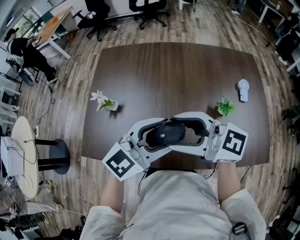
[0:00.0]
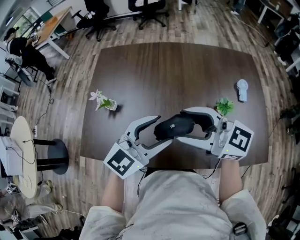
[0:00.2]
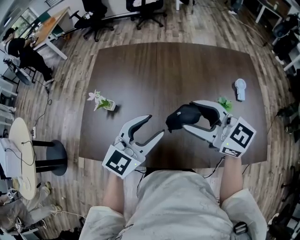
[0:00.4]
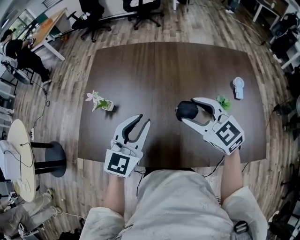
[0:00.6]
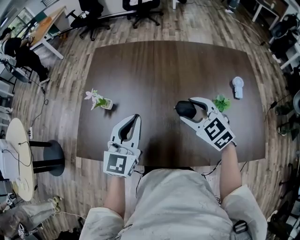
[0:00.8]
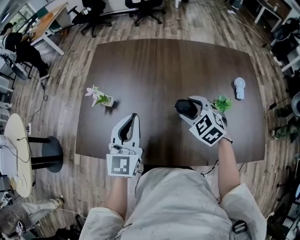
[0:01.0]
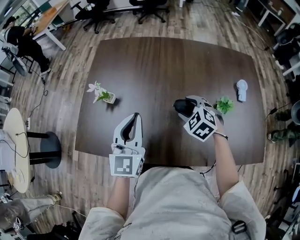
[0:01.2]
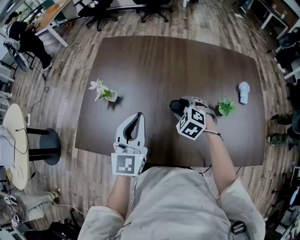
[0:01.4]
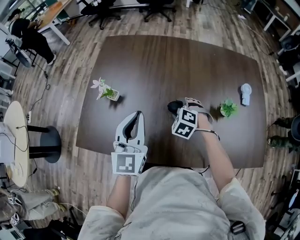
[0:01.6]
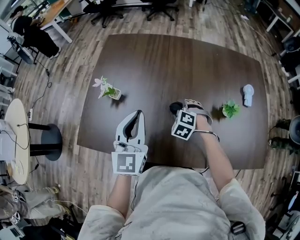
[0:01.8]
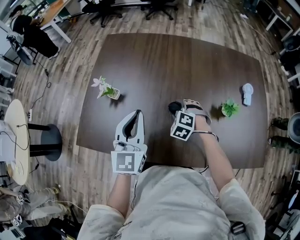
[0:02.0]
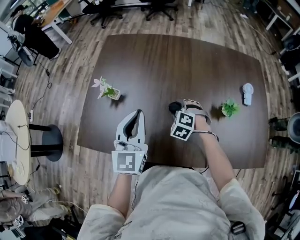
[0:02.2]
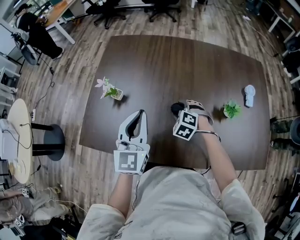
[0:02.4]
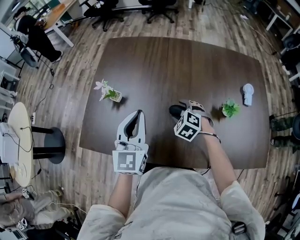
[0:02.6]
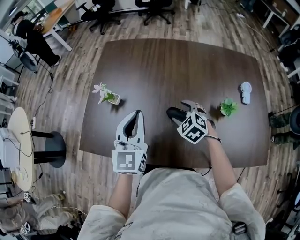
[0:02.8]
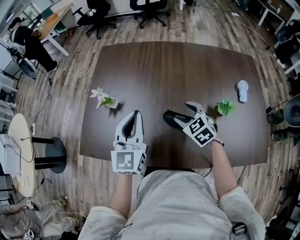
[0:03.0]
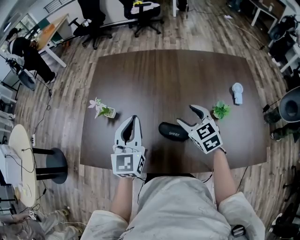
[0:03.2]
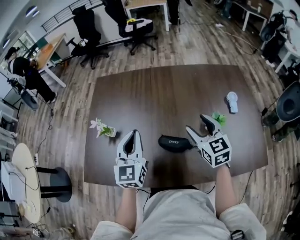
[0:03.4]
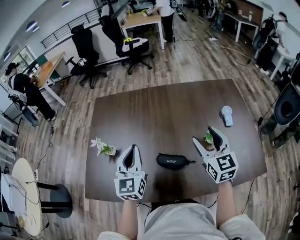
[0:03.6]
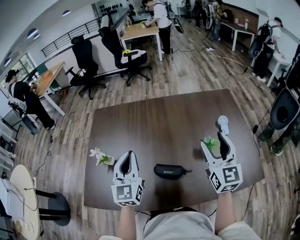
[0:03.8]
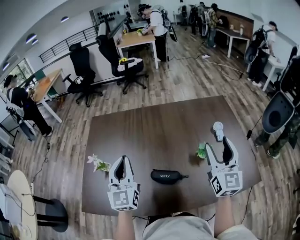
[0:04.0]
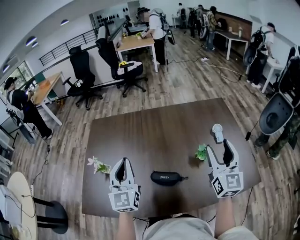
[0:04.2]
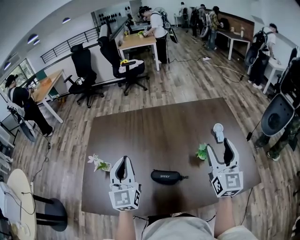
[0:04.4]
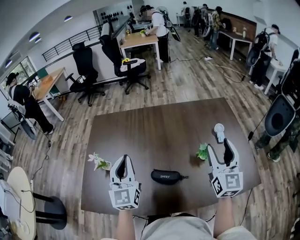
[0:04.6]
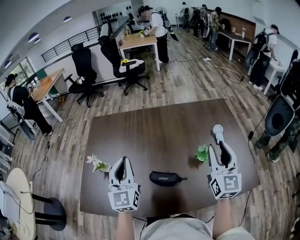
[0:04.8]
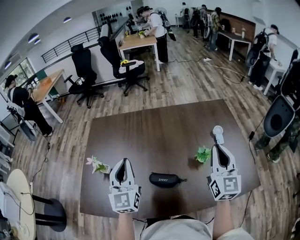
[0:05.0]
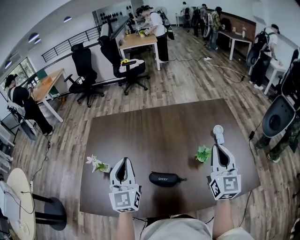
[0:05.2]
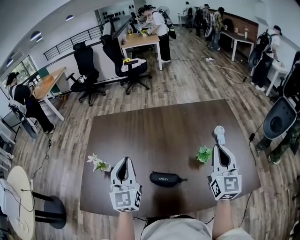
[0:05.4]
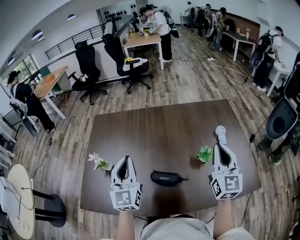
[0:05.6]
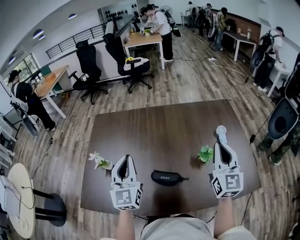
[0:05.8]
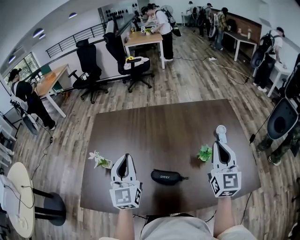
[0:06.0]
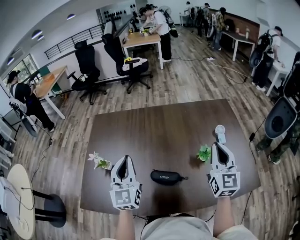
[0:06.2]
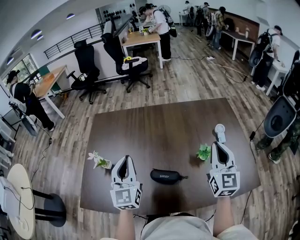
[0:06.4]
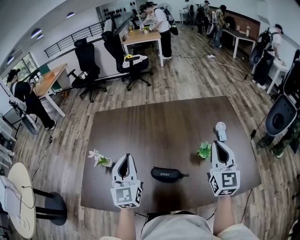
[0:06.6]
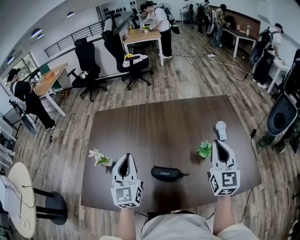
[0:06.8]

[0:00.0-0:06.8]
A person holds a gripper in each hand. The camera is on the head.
0:00.0 to 0:01.4: The right gripper moves downward, approximately 25 cm, and angles its fingers downward, by approximately 60 degrees; the left gripper shifts by approximately 15 cm, changes its angle by approximately 50 degrees, and closes its fingers.
0:02.8 to 0:04.0: The right gripper moves upward and to the right, approximately 35 cm, and tilts its fingers some 60 degrees upward. Meanwhile the left gripper shifts some 5 cm upward.
0:04.0 to 0:05.4: The right gripper closes its fingers.
0:05.4 to 0:06.8: The grippers make only small movements.

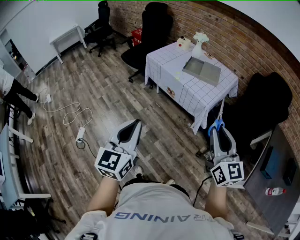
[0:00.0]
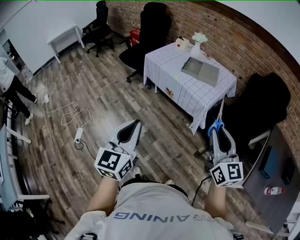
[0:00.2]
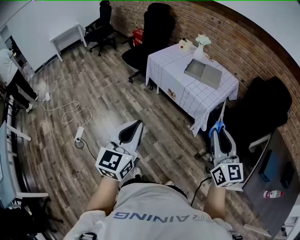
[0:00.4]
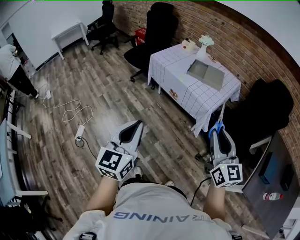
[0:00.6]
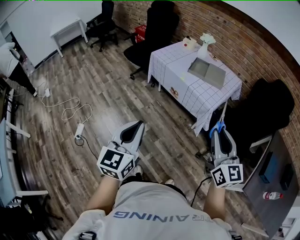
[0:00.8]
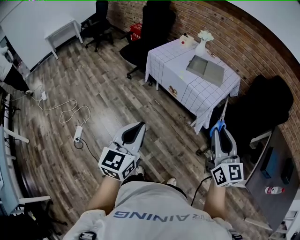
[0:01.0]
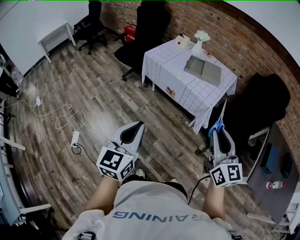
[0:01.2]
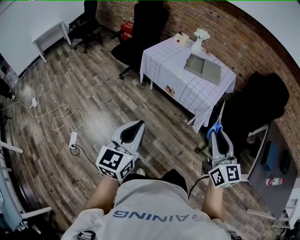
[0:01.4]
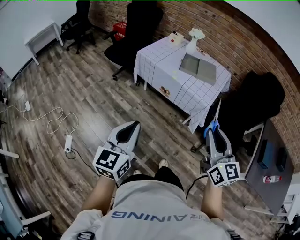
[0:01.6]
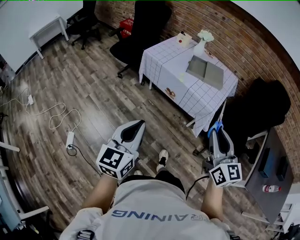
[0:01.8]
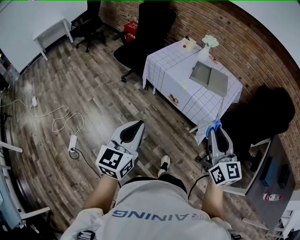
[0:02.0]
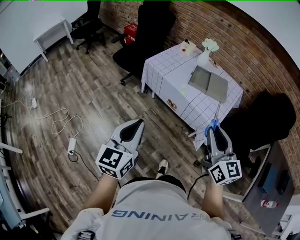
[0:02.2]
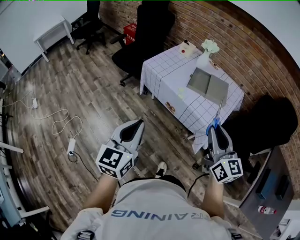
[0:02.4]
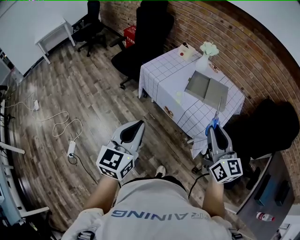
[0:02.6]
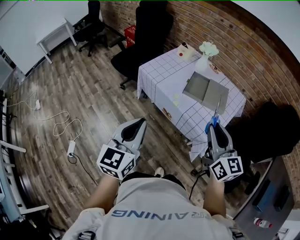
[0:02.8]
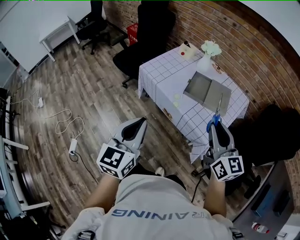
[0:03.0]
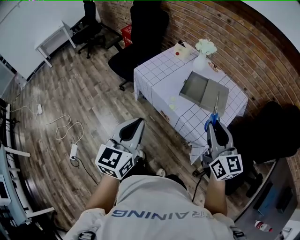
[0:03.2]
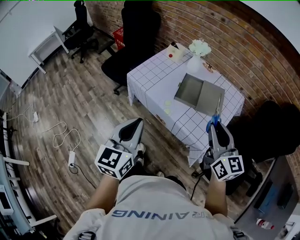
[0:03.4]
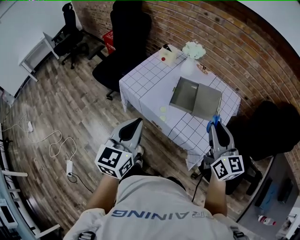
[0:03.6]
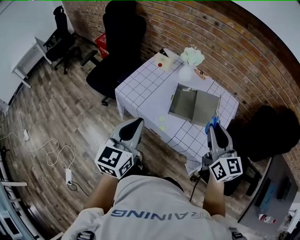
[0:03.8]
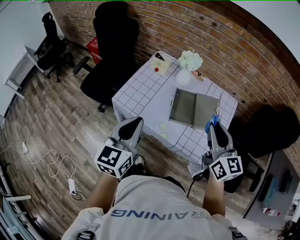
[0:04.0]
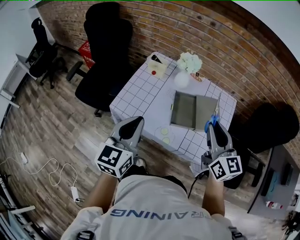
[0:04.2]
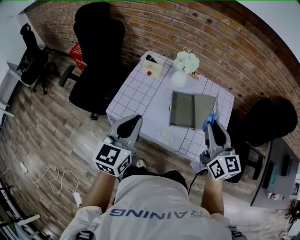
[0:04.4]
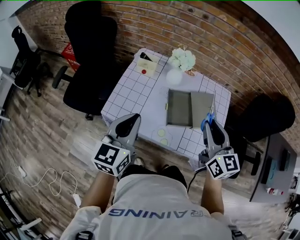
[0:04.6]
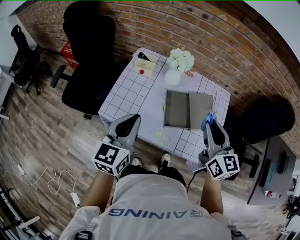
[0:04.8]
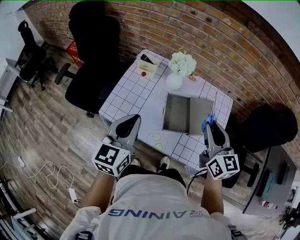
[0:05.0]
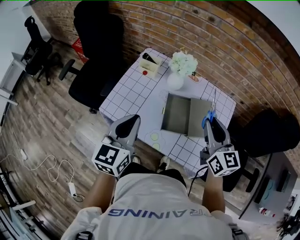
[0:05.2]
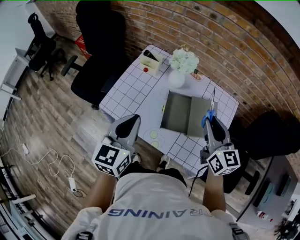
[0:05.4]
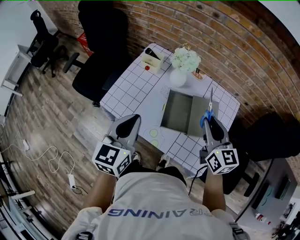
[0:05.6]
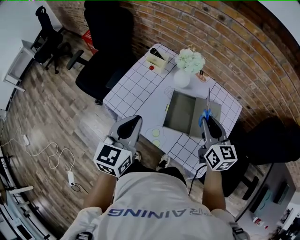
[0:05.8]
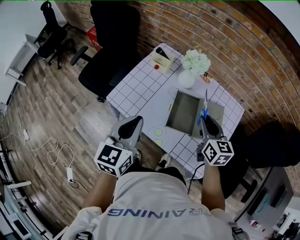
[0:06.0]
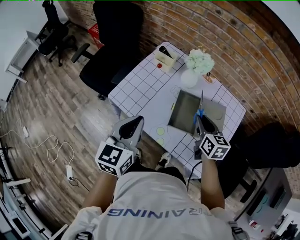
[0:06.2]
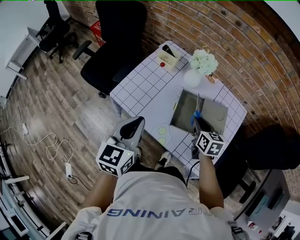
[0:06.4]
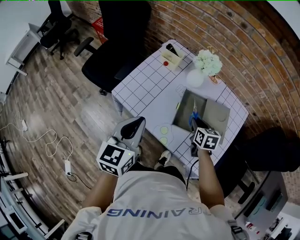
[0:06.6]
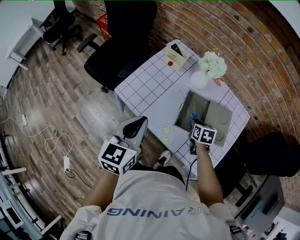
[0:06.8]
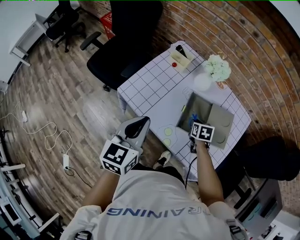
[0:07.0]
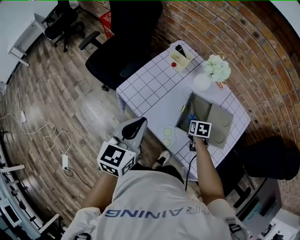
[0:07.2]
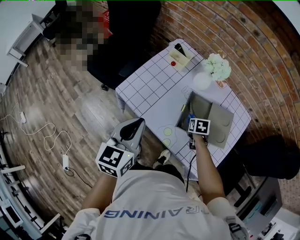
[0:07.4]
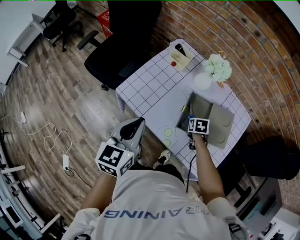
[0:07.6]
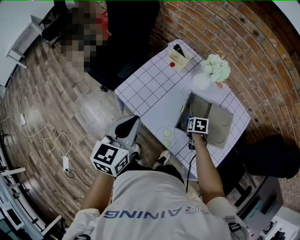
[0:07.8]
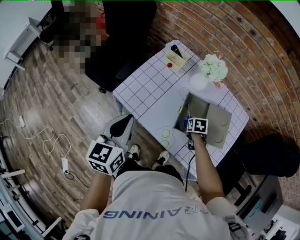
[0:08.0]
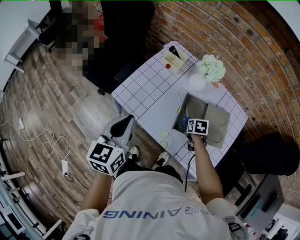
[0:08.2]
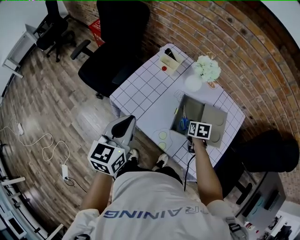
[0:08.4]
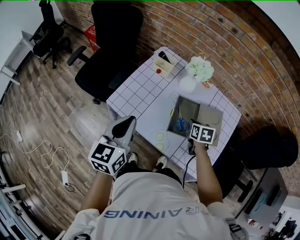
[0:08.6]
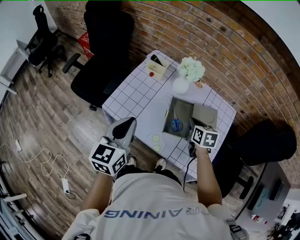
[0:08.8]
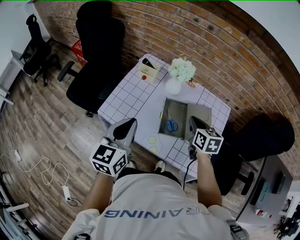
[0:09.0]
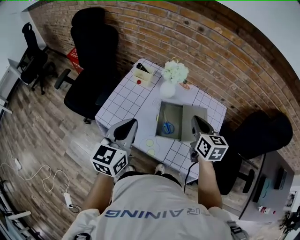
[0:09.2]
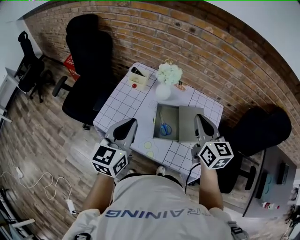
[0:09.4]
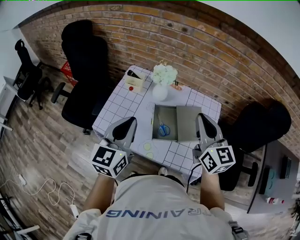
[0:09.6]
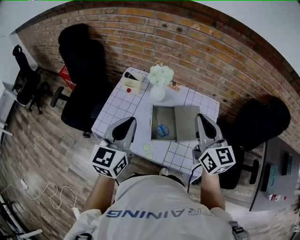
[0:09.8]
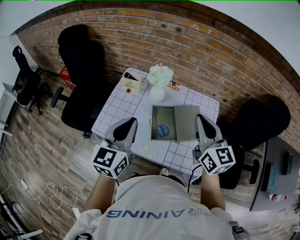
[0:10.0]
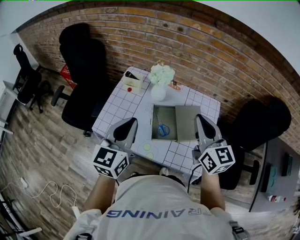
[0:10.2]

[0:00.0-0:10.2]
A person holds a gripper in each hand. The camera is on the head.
0:00.0 to 0:01.4: The left gripper is displaced to the left and forward by roughly 10 cm. Meanwhile the right gripper travels to the left by roughly 10 cm.
0:01.4 to 0:03.0: Both grippers move forward, approximately 30 cm.
0:03.0 to 0:04.4: Both grippers travel together forward, roughly 30 cm. The left gripper swivels about 30 degrees. Meanwhile the right gripper rotates about 20 degrees.
0:04.4 to 0:05.8: The left gripper shifts about 5 cm to the right. The right gripper moves forward, downward and to the right, roughly 15 cm.
0:05.8 to 0:07.2: The right gripper shifts some 25 cm downward, and points its fingers roughly 50 degrees further downward. Meanwhile the left gripper moves to the left, about 5 cm.
0:07.2 to 0:08.8: The right gripper goes roughly 15 cm upward, changes its angle by roughly 20 degrees, and closes its fingers.
0:08.8 to 0:10.2: The right gripper shifts approximately 25 cm upward, and angles its fingers upward, by roughly 40 degrees. The left gripper moves to the right and upward, approximately 10 cm.

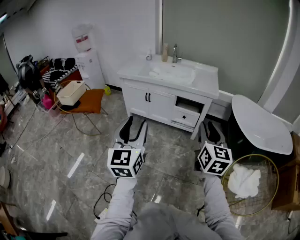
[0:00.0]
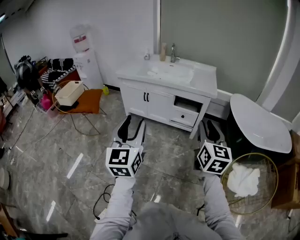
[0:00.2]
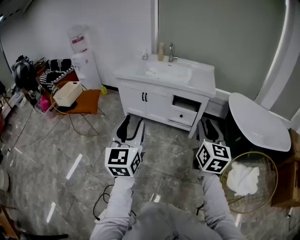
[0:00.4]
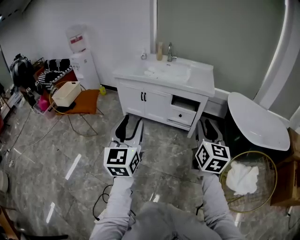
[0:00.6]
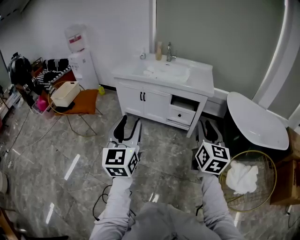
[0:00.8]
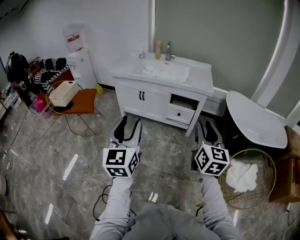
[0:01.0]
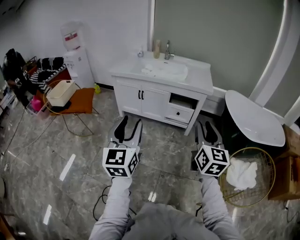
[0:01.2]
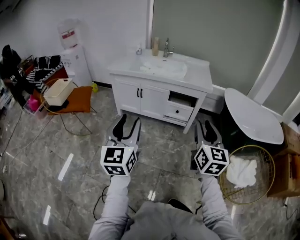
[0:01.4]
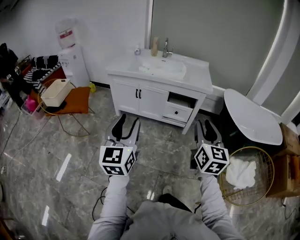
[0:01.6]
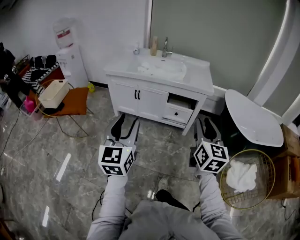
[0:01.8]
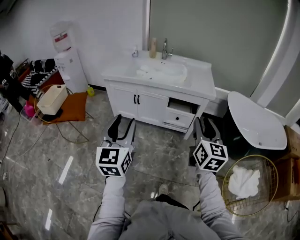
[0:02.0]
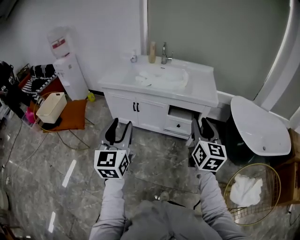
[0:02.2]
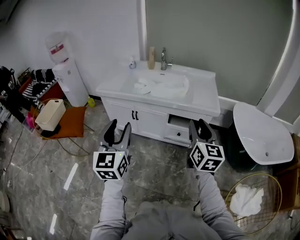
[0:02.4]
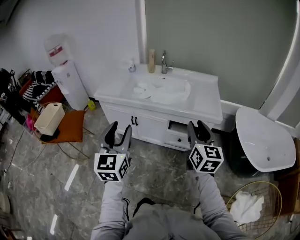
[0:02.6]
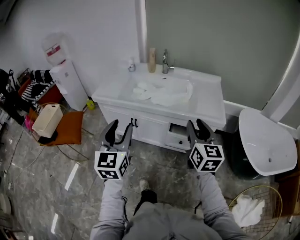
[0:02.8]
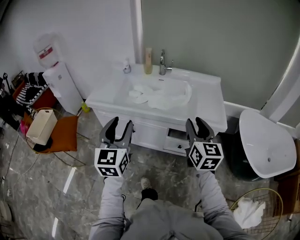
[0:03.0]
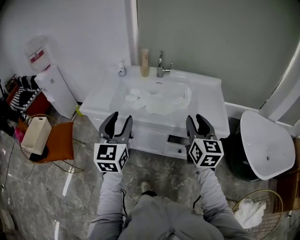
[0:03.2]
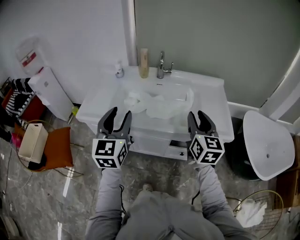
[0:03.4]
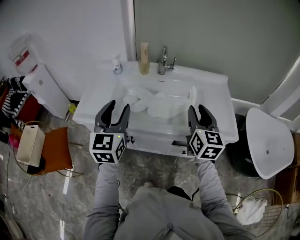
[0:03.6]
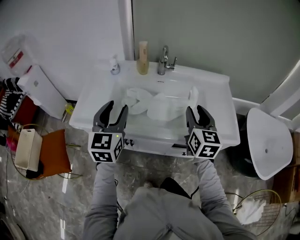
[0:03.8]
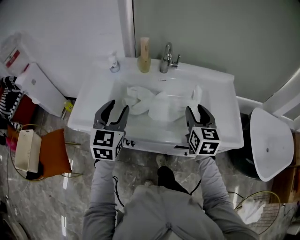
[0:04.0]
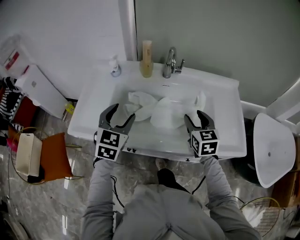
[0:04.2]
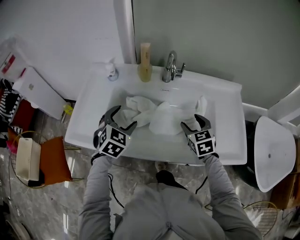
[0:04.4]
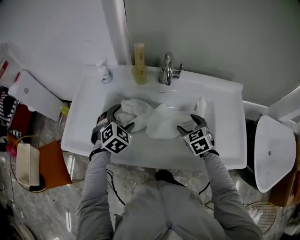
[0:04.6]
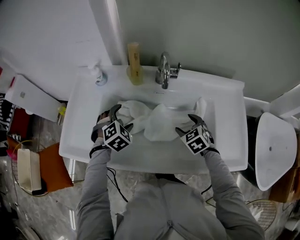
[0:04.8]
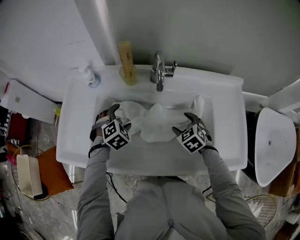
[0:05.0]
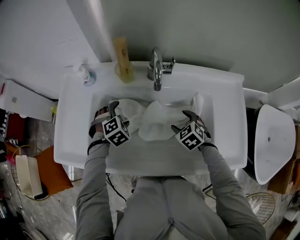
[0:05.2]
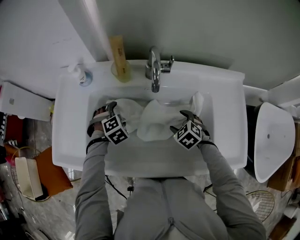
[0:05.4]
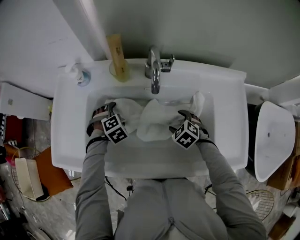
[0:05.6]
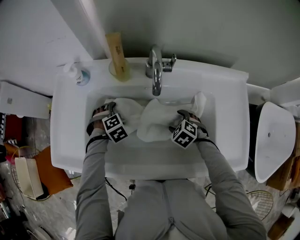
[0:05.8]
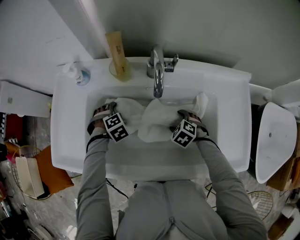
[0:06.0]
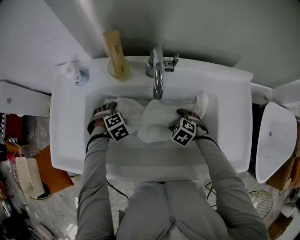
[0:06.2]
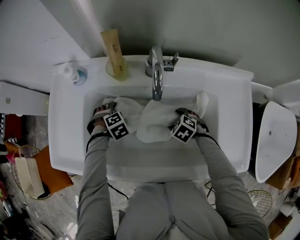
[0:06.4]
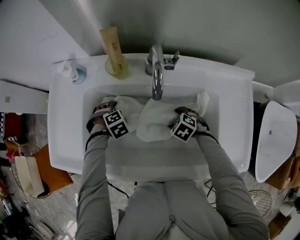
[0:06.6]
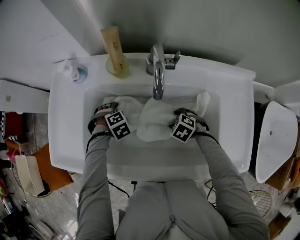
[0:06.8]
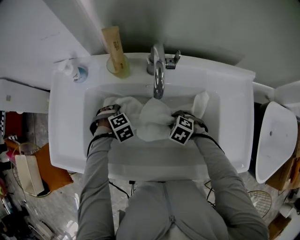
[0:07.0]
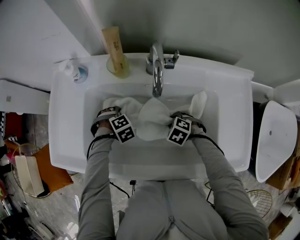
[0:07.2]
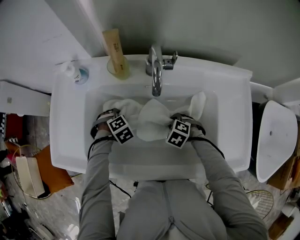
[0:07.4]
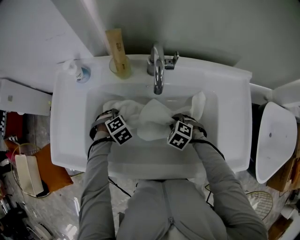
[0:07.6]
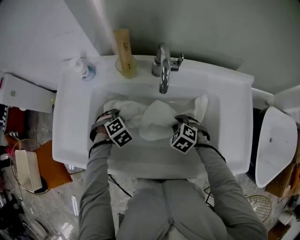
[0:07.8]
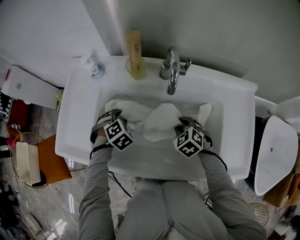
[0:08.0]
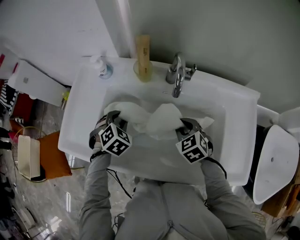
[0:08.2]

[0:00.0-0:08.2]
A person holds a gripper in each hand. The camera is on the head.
0:00.0 to 0:01.6: Both grippers move to the left, some 5 cm.
0:01.6 to 0:03.2: The pair of grippers is taken forward, about 50 cm.
0:03.2 to 0:05.0: The two grippers go approximately 50 cm forward and downward. The left gripper tilts its fingers roughly 60 degrees downward, and opens its fingers; the right gripper tilts its fingers roughly 50 degrees downward, and opens its fingers.
0:05.0 to 0:06.6: Both grippers travel together downward, about 10 cm. The right gripper swivels roughly 30 degrees, while the left gripper swivels roughly 30 degrees.
0:06.6 to 0:08.2: The grippers both shift upward by some 15 cm. The right gripper rotates approximately 30 degrees, and closes. Meanwhile the left gripper turns by roughly 30 degrees, and closes its fingers.
